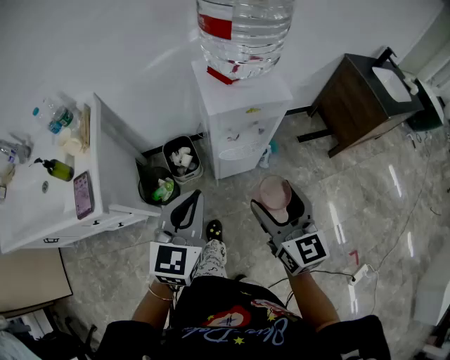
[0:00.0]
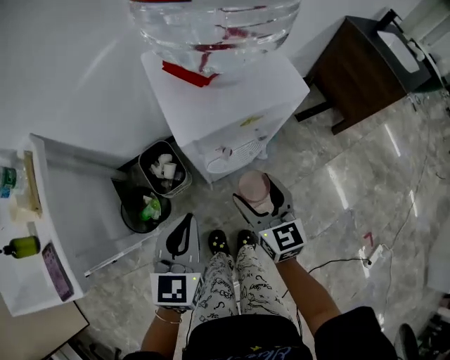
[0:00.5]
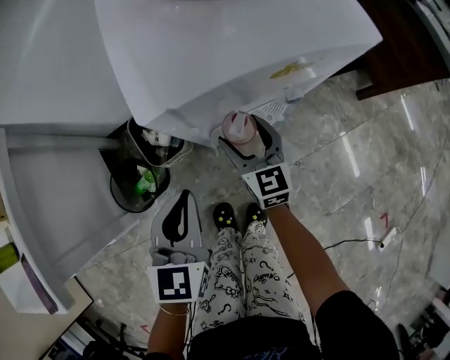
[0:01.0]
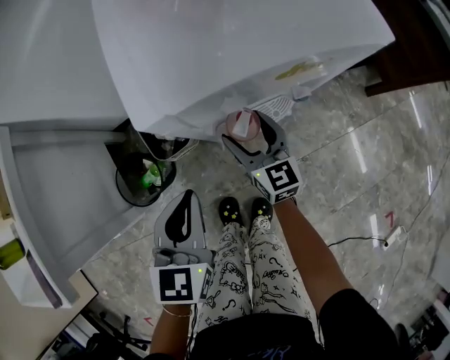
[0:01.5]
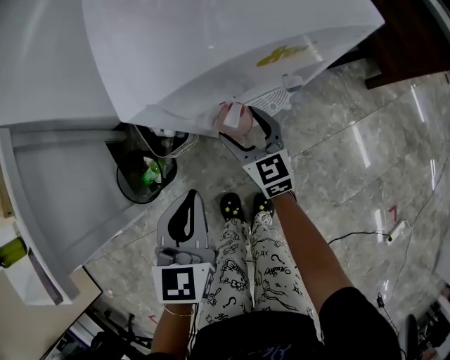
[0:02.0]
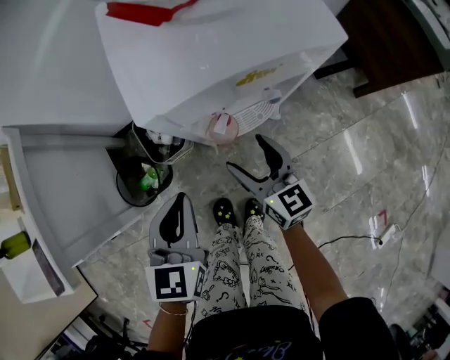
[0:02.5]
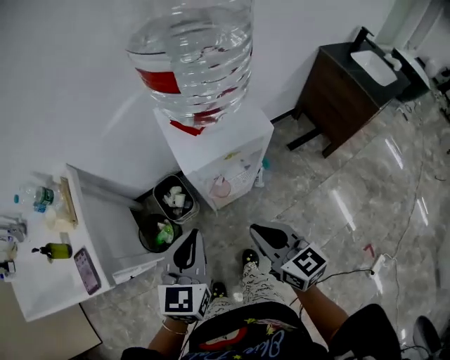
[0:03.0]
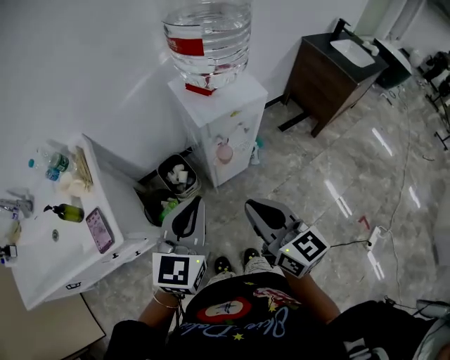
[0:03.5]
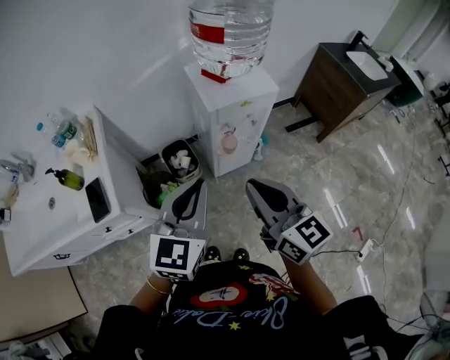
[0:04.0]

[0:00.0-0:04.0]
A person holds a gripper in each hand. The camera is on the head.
0:00.0 to 0:02.0: The right gripper goes some 50 cm downward and forward. The left gripper travels downward and forward by approximately 30 cm.
0:02.0 to 0:04.0: Both grippers travel together upward and backward, about 50 cm. The left gripper rotates about 20 degrees. Meanwhile the right gripper rotates roughly 20 degrees, and closes up.

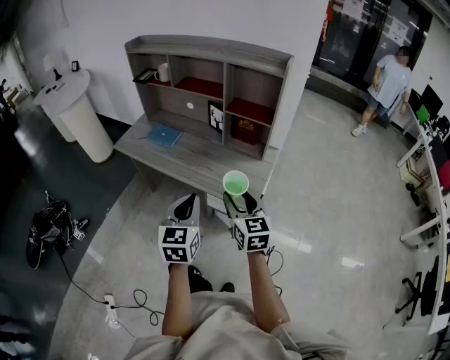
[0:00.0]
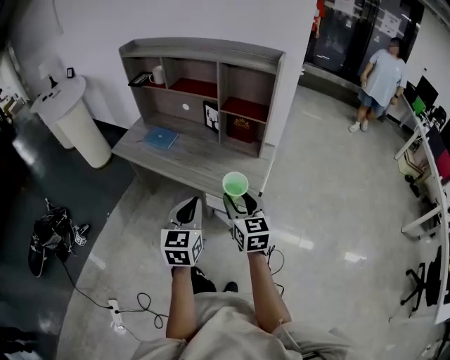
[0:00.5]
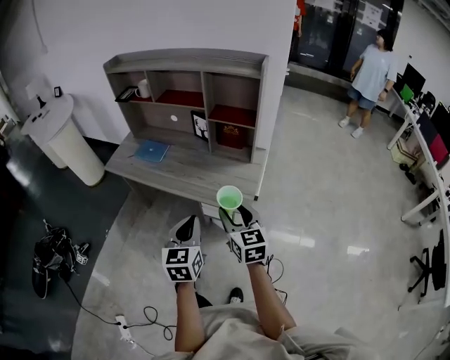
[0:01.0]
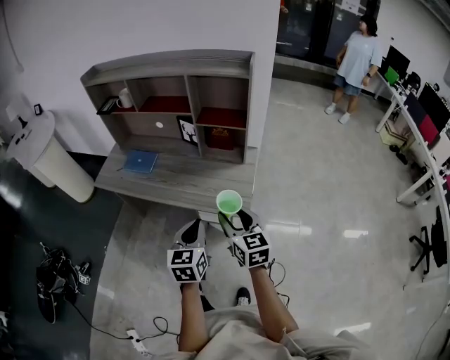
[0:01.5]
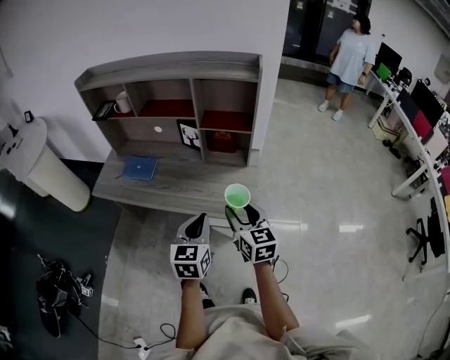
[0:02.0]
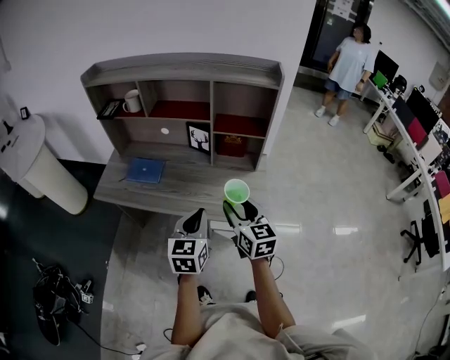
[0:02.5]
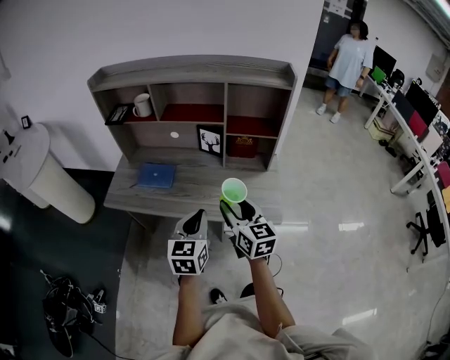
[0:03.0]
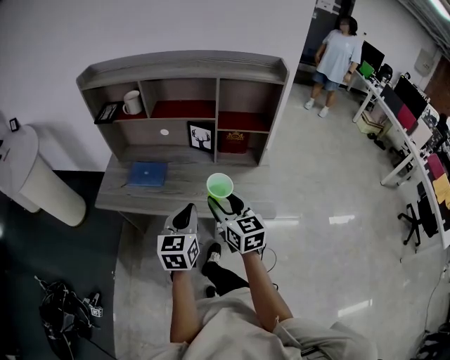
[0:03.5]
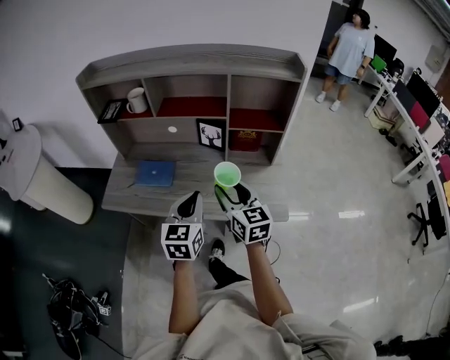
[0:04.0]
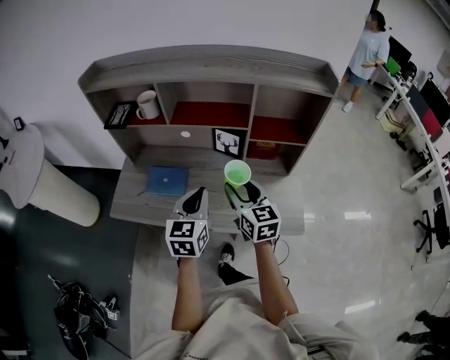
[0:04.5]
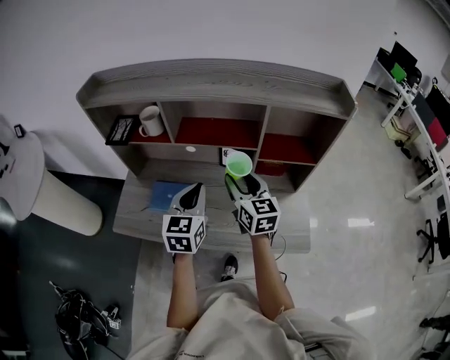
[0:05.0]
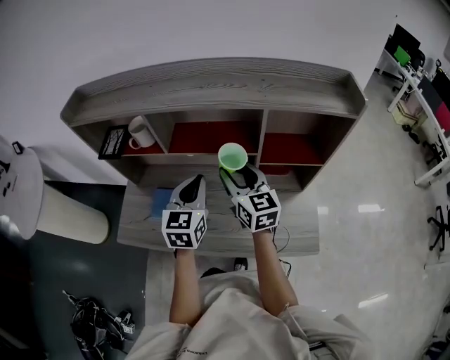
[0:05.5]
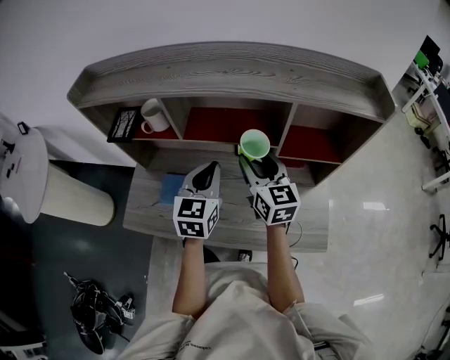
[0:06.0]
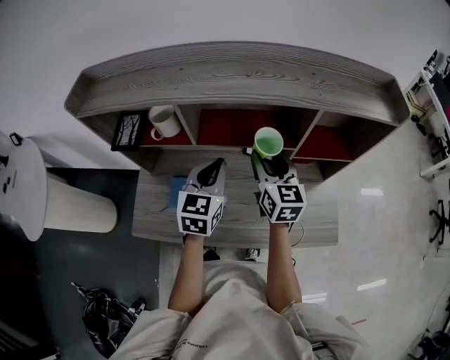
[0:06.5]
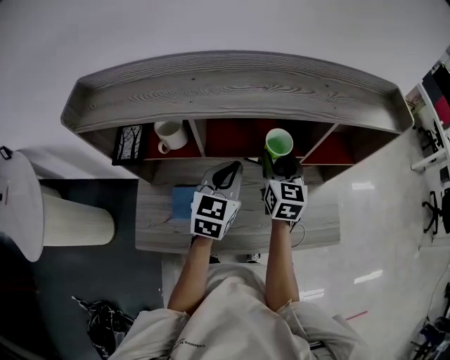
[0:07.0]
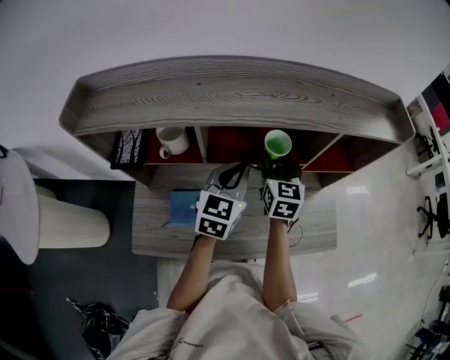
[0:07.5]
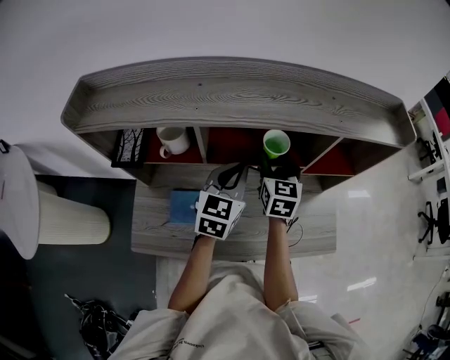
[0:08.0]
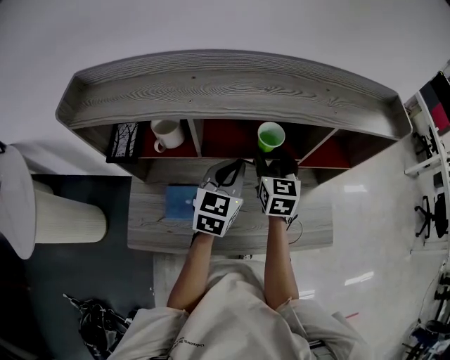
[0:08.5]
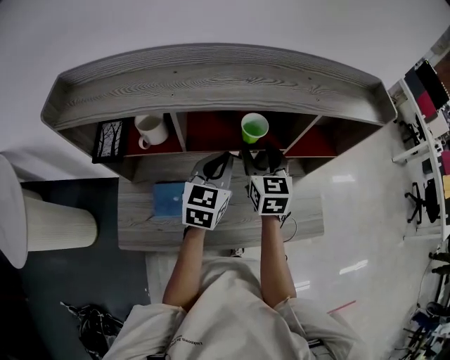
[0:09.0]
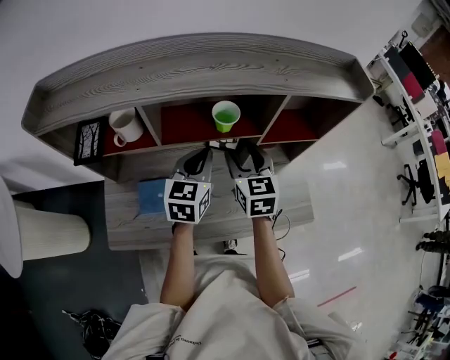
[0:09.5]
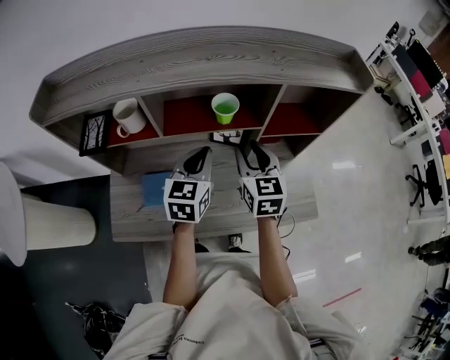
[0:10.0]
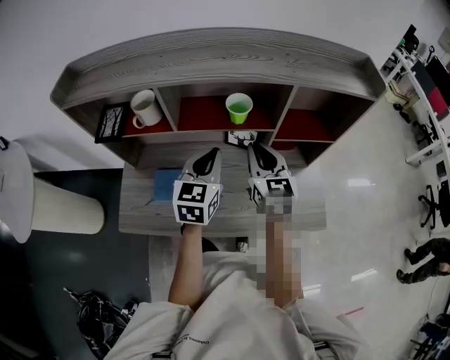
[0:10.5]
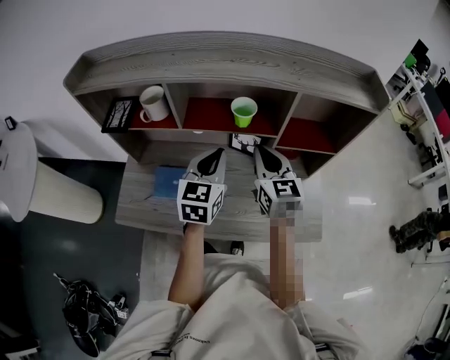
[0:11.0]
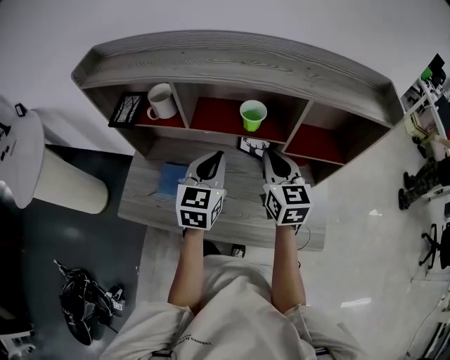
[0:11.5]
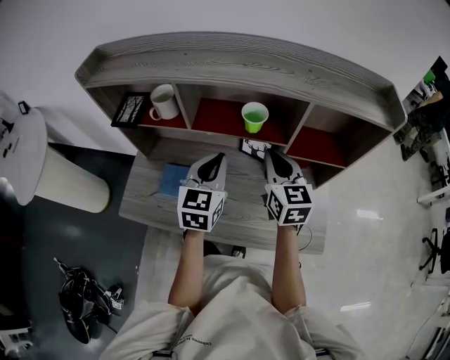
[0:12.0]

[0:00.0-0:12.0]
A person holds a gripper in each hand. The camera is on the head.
0:00.0 to 0:02.0: The grippers both shift forward by roughly 5 cm.
0:02.0 to 0:04.0: Both grippers move to the left and forward, about 20 cm.
0:04.0 to 0:06.0: Both grippers travel together forward, some 25 cm.
0:06.0 to 0:08.0: Both grippers move forward, approximately 10 cm. The right gripper swivels approximately 30 degrees.
0:08.0 to 0:10.0: The right gripper travels backward and to the right by about 10 cm. Meanwhile the left gripper ends up some 5 cm from where it was.
0:10.0 to 0:12.0: The right gripper closes up.

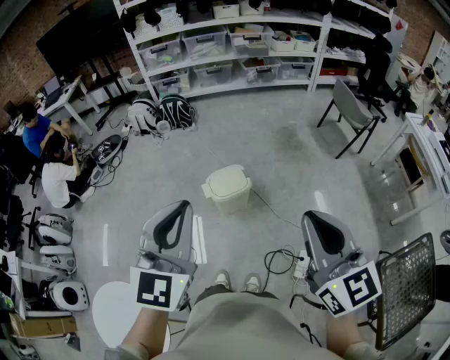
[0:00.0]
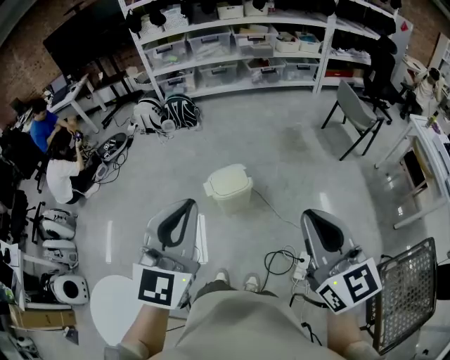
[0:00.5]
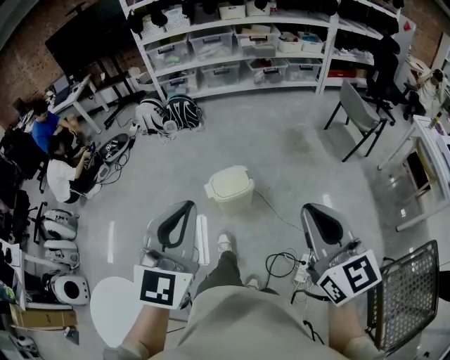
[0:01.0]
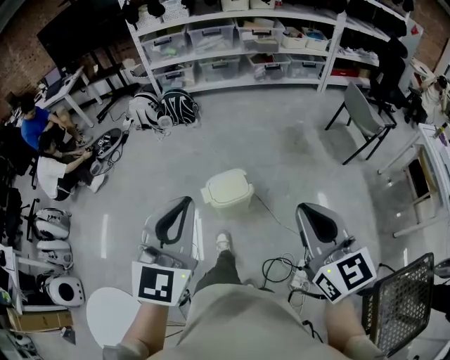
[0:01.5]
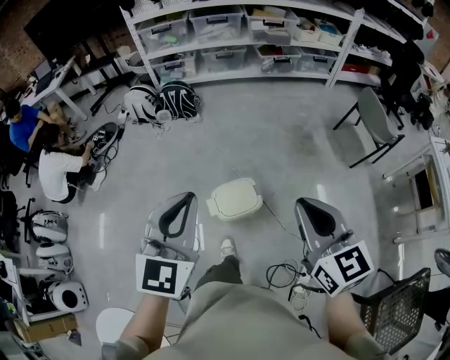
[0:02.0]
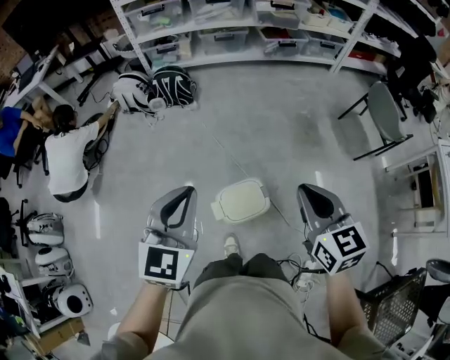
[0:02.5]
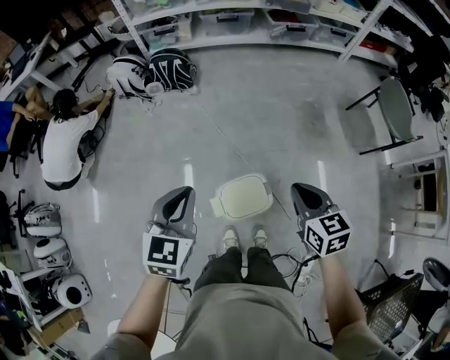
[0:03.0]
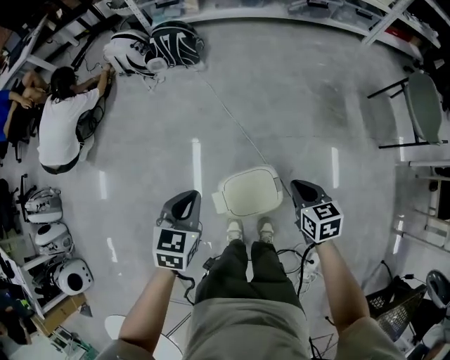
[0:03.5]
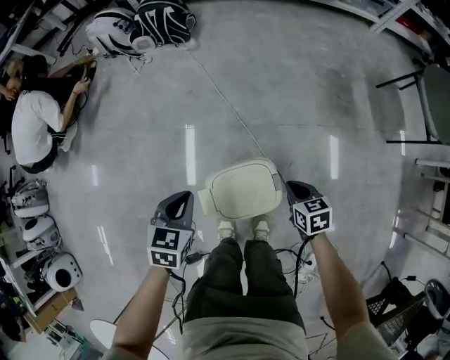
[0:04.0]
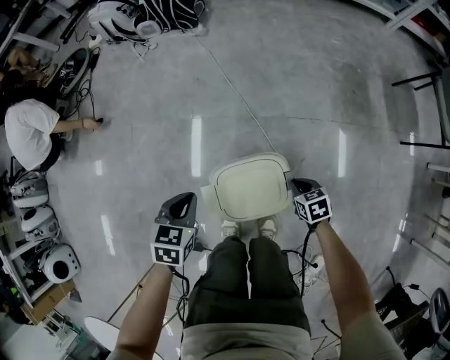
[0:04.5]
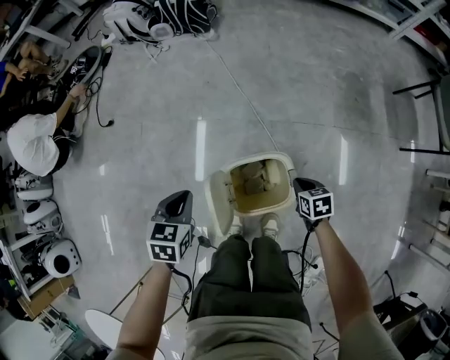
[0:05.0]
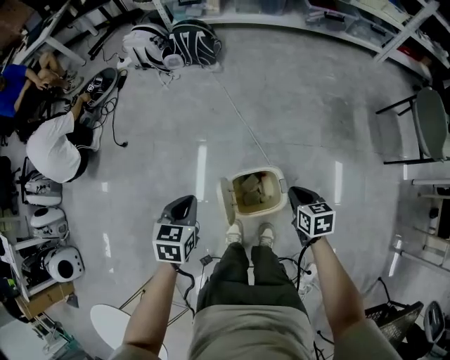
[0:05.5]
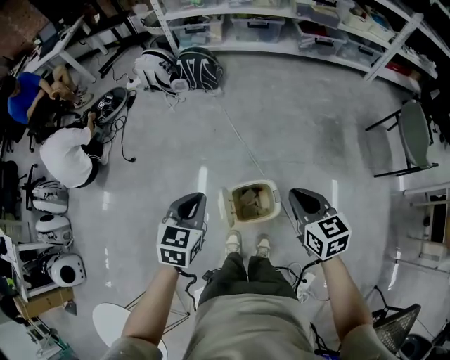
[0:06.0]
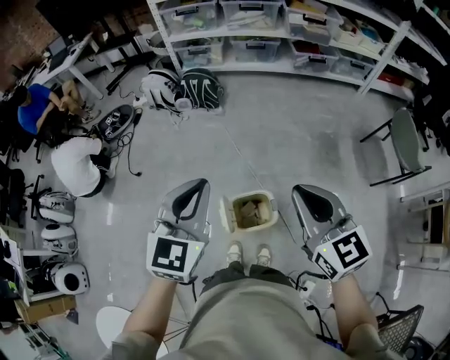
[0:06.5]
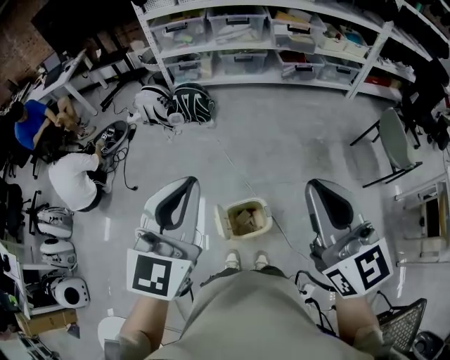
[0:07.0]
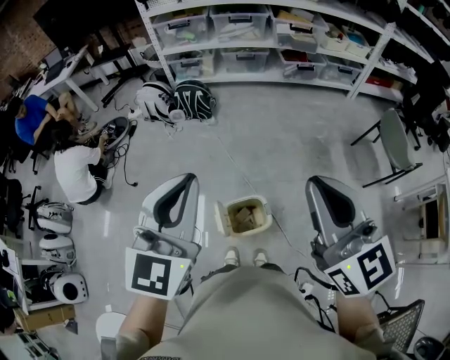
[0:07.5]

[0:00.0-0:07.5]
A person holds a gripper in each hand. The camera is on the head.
0:00.0 to 0:02.0: Both grippers travel together forward, about 25 cm.
0:02.0 to 0:04.0: Both grippers travel together downward, about 50 cm. The left gripper points its fingers roughly 40 degrees further downward; the right gripper angles its fingers downward, by approximately 40 degrees.
0:04.0 to 0:05.5: The right gripper moves upward, about 10 cm. The left gripper is displaced upward and to the left by roughly 10 cm.
0:05.5 to 0:07.5: The grippers both shift upward by roughly 50 cm. The left gripper tilts its fingers some 40 degrees upward; the right gripper tilts its fingers approximately 50 degrees upward.

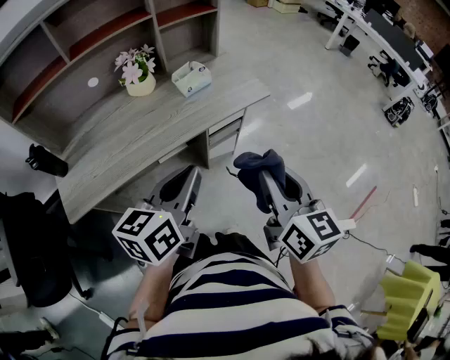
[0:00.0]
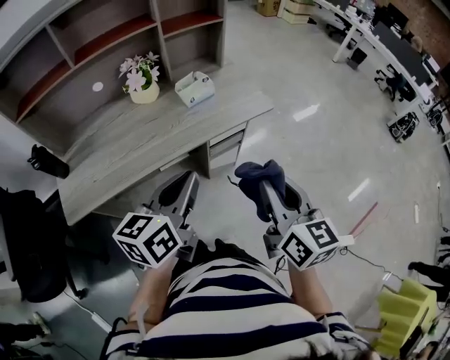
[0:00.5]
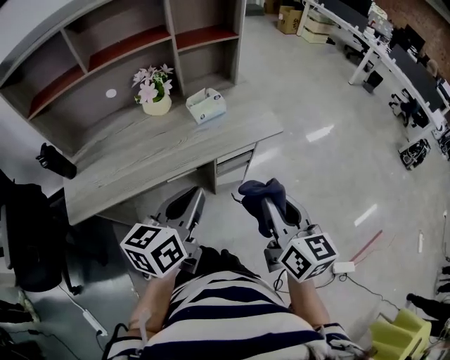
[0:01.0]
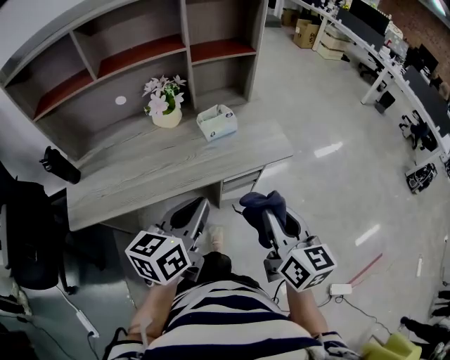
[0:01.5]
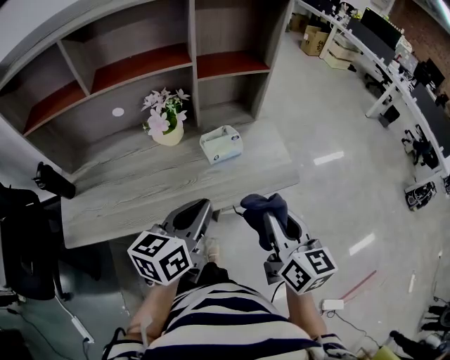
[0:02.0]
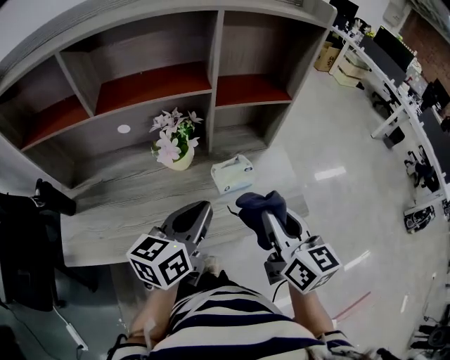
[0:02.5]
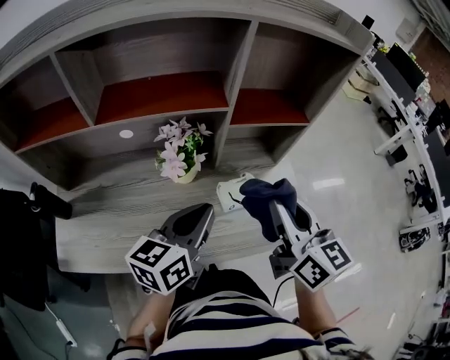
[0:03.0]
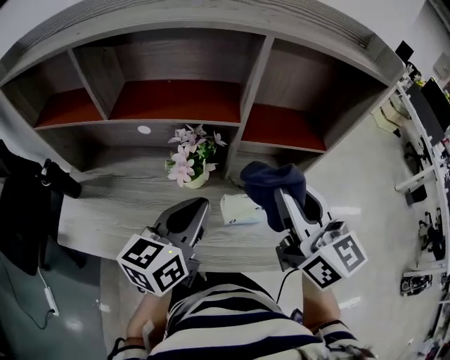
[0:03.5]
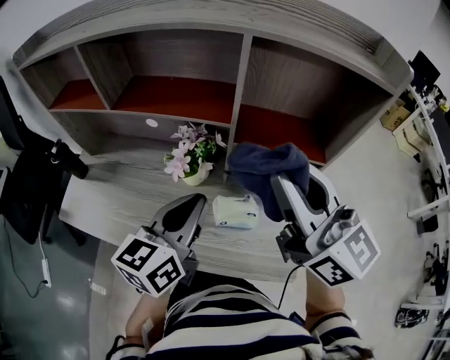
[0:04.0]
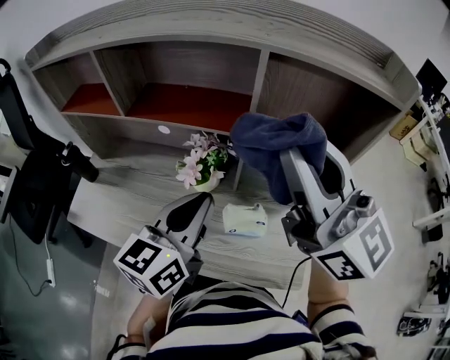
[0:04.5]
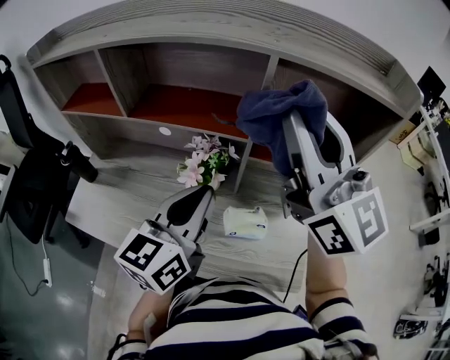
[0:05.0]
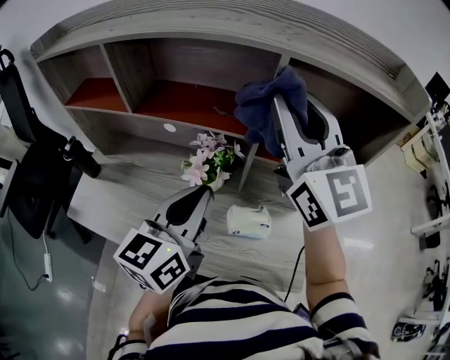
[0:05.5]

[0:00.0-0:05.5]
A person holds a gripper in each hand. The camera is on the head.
0:00.0 to 0:02.0: The grippers both shift forward by roughly 20 cm.
0:02.0 to 0:03.5: The right gripper goes roughly 30 cm forward and upward, and turns by some 30 degrees, while the left gripper is displaced forward by about 15 cm.
0:03.5 to 0:05.5: The right gripper goes about 20 cm forward and upward, and changes its angle by approximately 30 degrees. The left gripper heads upward, covering roughly 5 cm.
